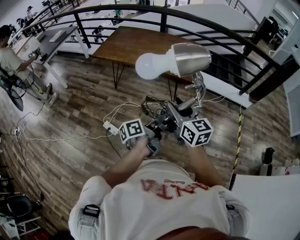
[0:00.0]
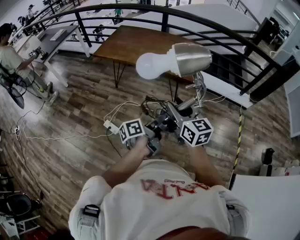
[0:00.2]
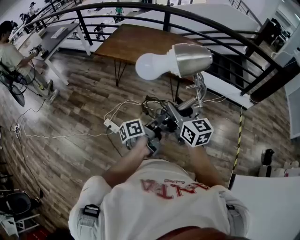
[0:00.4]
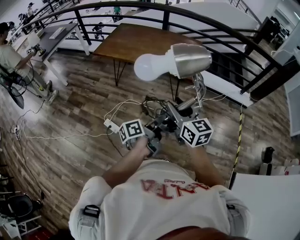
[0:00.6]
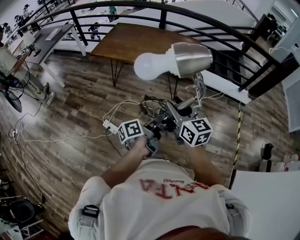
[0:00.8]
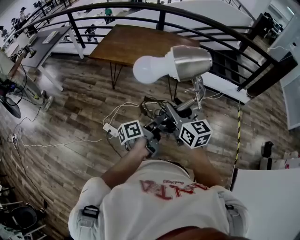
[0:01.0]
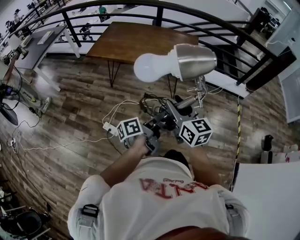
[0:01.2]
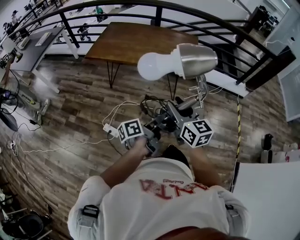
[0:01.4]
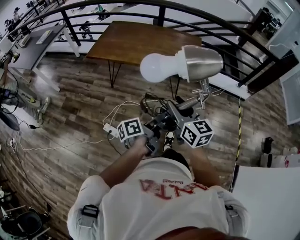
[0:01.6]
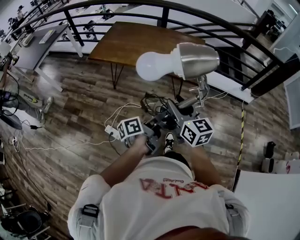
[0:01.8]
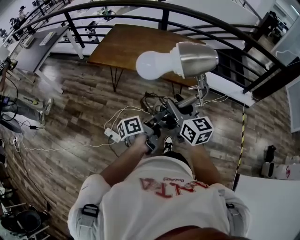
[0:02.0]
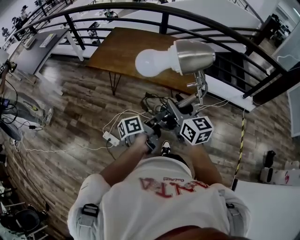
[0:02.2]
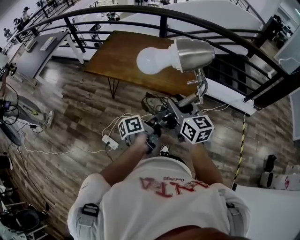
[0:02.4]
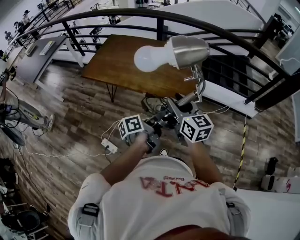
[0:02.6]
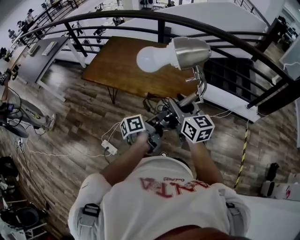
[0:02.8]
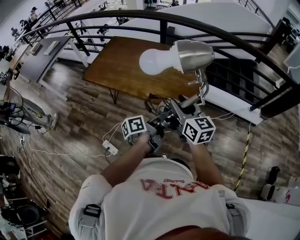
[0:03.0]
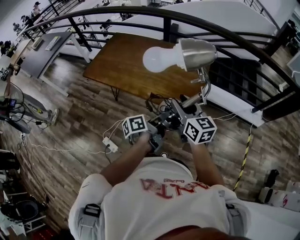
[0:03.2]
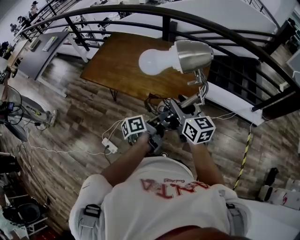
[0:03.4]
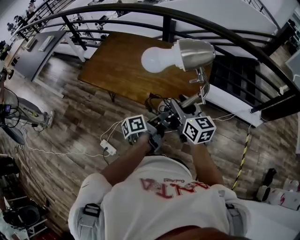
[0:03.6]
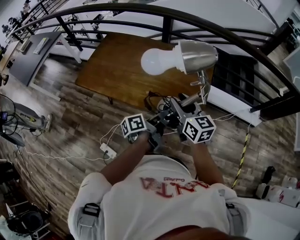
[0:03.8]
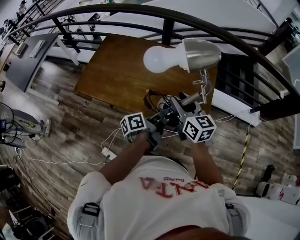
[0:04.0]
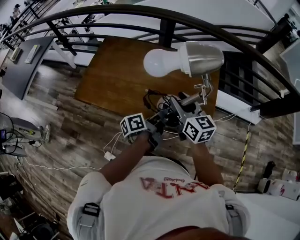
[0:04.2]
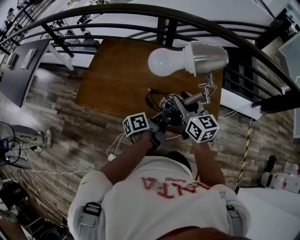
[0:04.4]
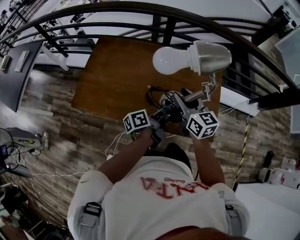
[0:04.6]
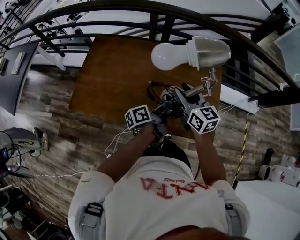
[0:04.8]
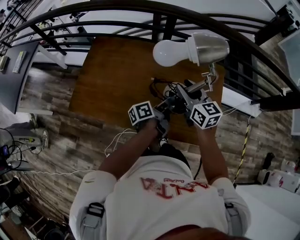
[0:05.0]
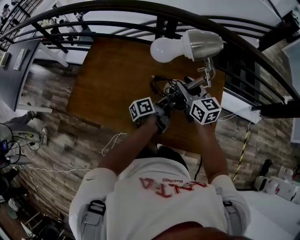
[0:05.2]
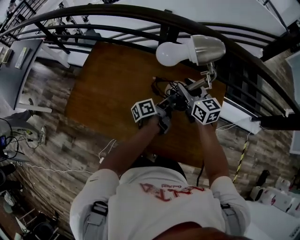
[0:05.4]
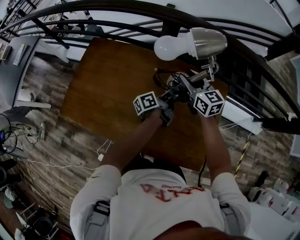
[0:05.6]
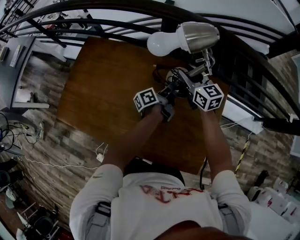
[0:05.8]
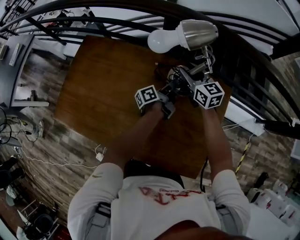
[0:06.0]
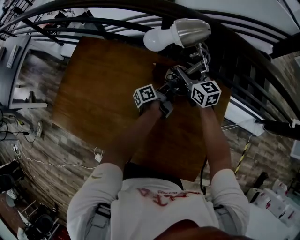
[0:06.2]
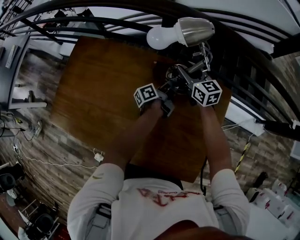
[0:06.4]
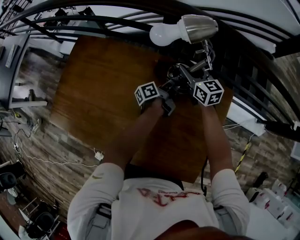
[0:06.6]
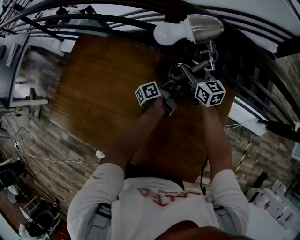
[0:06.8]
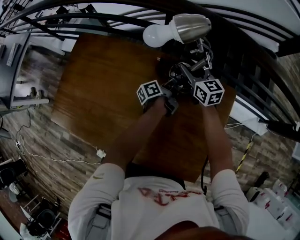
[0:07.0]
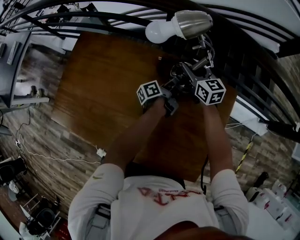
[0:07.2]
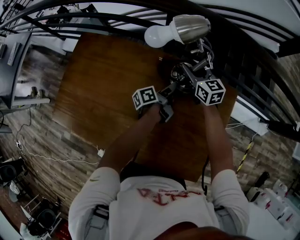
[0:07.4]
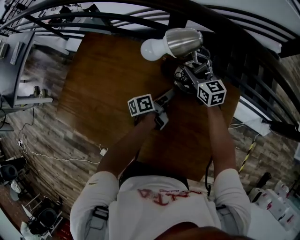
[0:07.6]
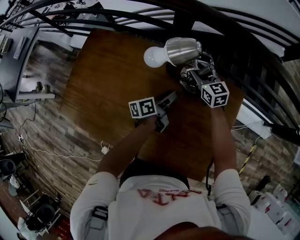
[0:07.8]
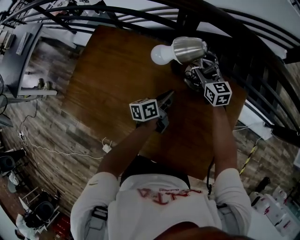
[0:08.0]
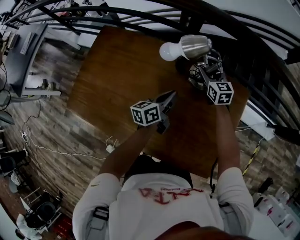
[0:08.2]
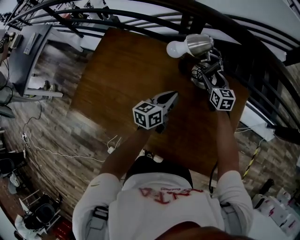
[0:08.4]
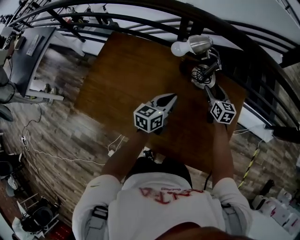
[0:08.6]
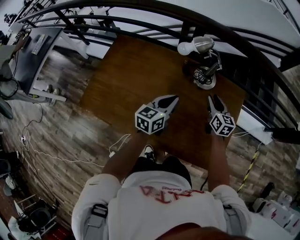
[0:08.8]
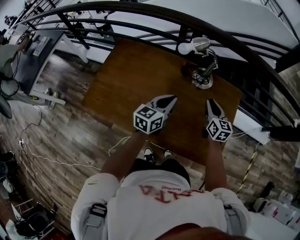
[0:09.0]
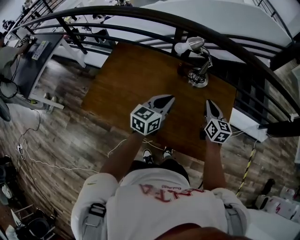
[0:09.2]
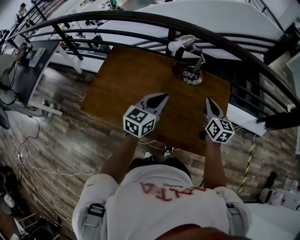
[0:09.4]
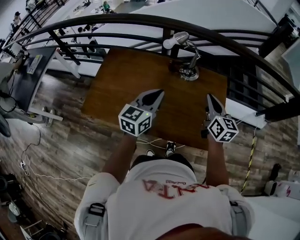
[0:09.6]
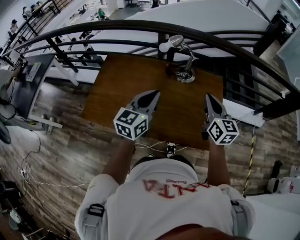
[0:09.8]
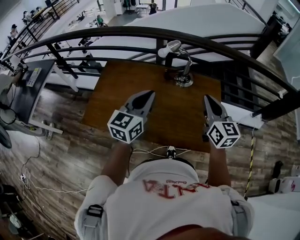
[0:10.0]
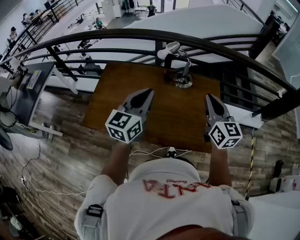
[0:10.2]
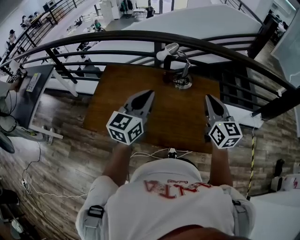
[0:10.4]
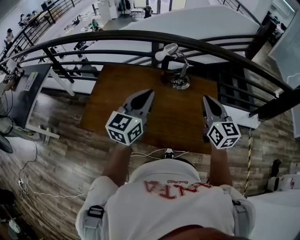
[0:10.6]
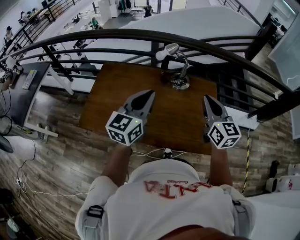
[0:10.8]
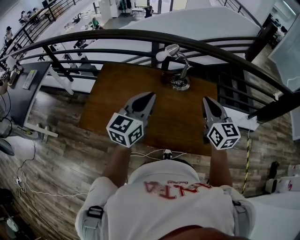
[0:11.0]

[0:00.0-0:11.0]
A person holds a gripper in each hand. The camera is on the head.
0.0 to 1.6 s: Both grippers move to the left and forward, about 10 cm.
1.6 to 3.2 s: The two grippers go some 30 cm forward and to the right.
3.2 to 4.8 s: The grippers both shift forward and to the left by approximately 35 cm.
4.8 to 6.2 s: Both grippers move forward and downward, approximately 35 cm.
6.2 to 7.8 s: The left gripper is displaced backward and to the left by roughly 10 cm, and rotates approximately 20 degrees.
7.8 to 9.4 s: The left gripper goes approximately 30 cm upward and backward, rolls clockwise, seen from behind, by about 60 degrees, and closes its fingers. Meanwhile the right gripper is displaced backward and upward by roughly 35 cm, rotates approximately 30 degrees, and closes up.
9.4 to 11.0 s: The left gripper shifts about 10 cm upward, while the right gripper travels upward and backward by about 15 cm.

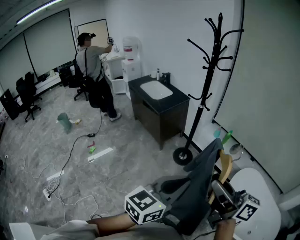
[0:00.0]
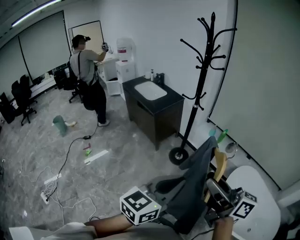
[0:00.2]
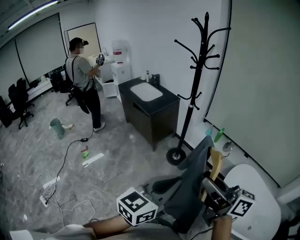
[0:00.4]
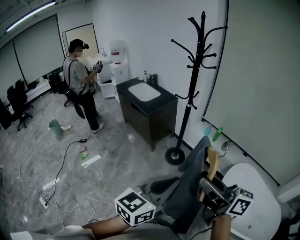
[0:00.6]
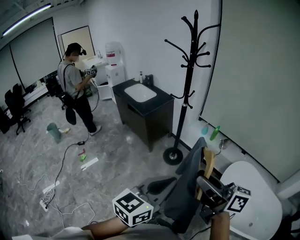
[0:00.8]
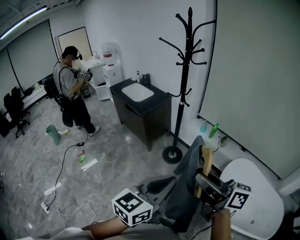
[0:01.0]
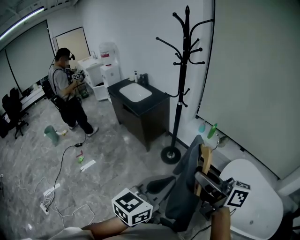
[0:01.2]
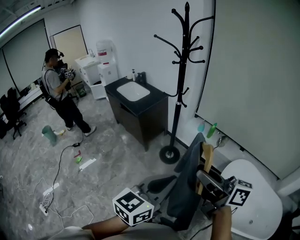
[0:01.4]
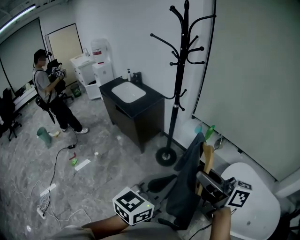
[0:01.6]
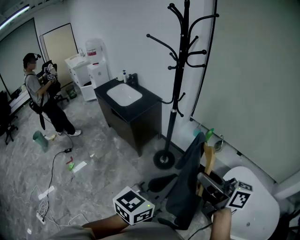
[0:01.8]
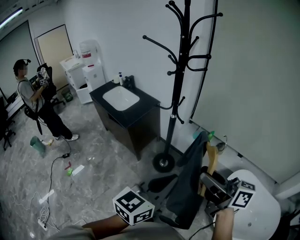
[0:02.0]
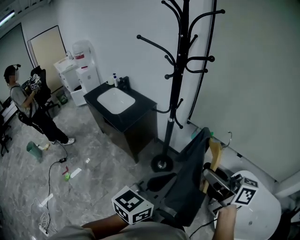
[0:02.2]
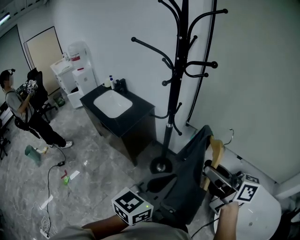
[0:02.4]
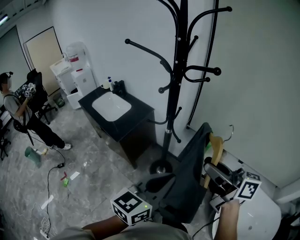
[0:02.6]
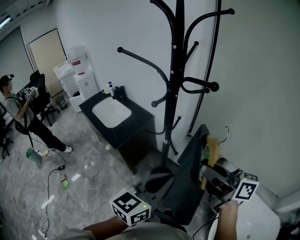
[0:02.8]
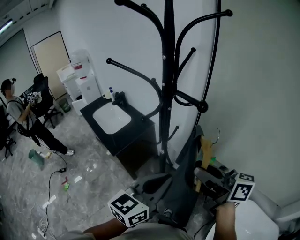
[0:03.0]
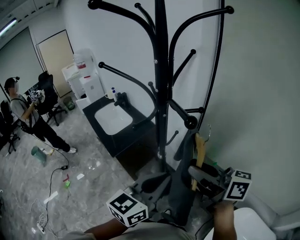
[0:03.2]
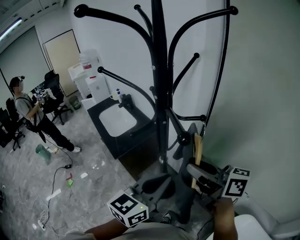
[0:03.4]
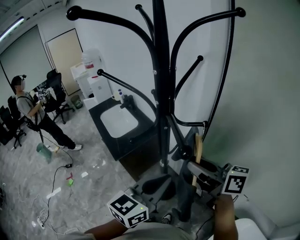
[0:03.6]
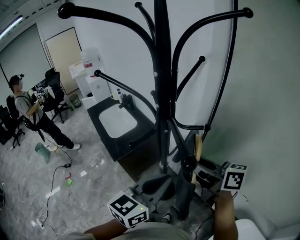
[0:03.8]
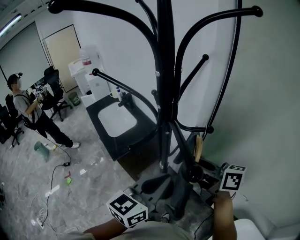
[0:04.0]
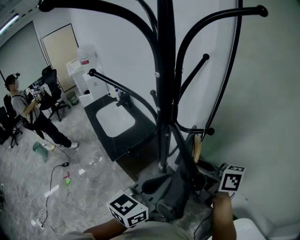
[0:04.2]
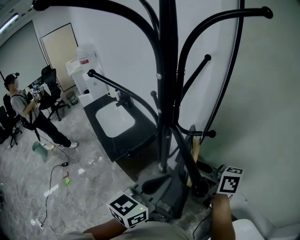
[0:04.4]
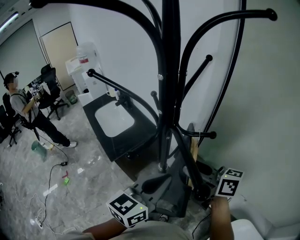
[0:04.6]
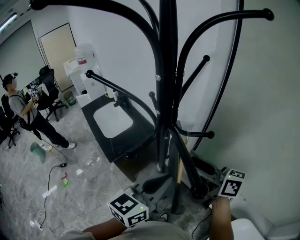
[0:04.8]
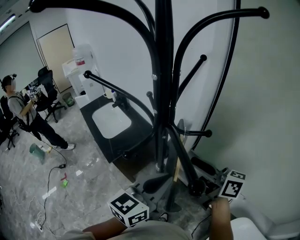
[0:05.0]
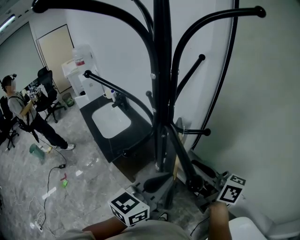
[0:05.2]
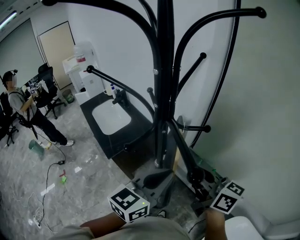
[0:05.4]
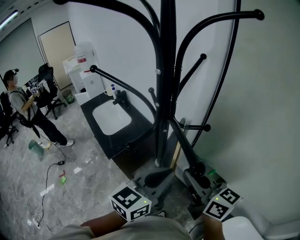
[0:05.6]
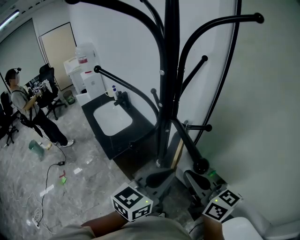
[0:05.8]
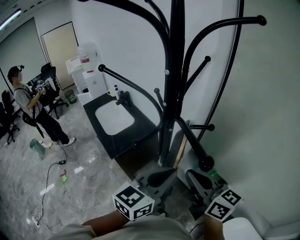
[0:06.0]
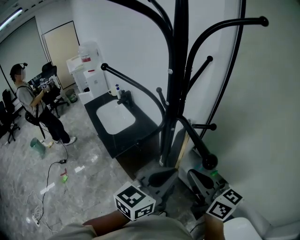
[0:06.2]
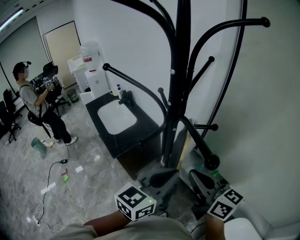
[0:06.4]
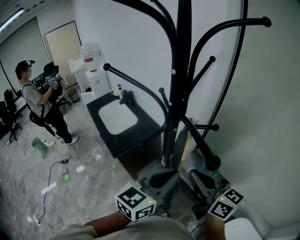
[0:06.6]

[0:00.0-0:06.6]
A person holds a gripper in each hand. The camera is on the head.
0.0 to 1.6 s: The left gripper moves forward and to the right, some 10 cm. The right gripper heads forward, covering approximately 10 cm.
1.6 to 3.2 s: The two grippers travel together, forward, approximately 50 cm.
3.2 to 5.0 s: Both grippers move forward, roughly 10 cm.
5.0 to 6.6 s: The right gripper shifts some 5 cm backward, and closes.

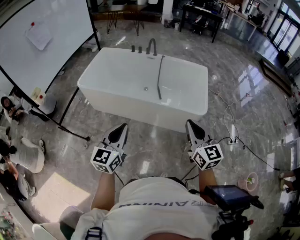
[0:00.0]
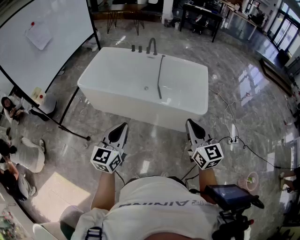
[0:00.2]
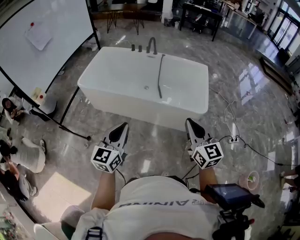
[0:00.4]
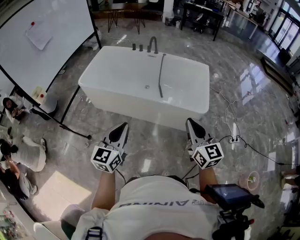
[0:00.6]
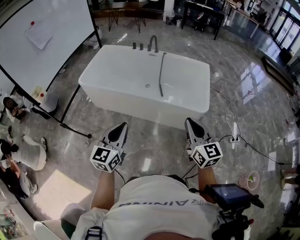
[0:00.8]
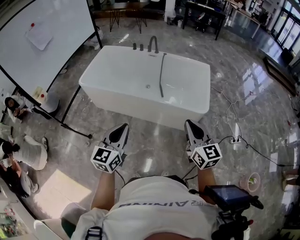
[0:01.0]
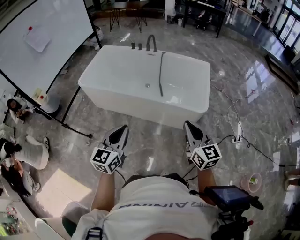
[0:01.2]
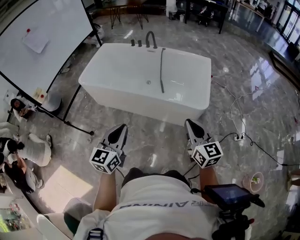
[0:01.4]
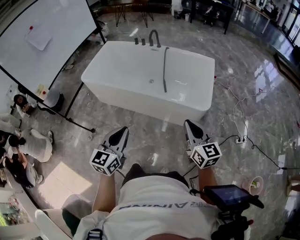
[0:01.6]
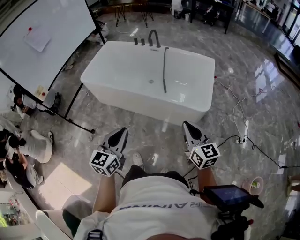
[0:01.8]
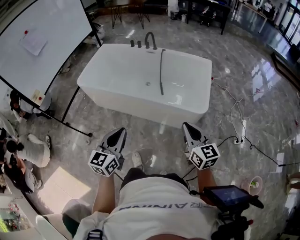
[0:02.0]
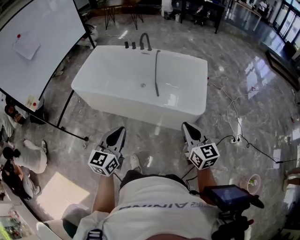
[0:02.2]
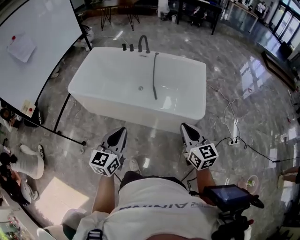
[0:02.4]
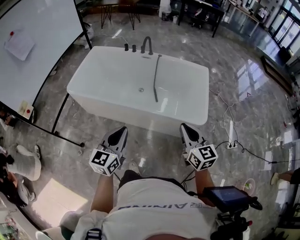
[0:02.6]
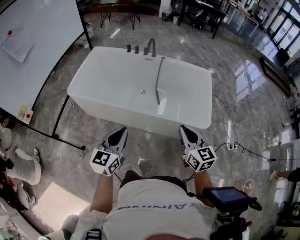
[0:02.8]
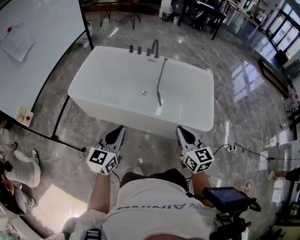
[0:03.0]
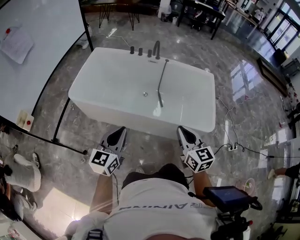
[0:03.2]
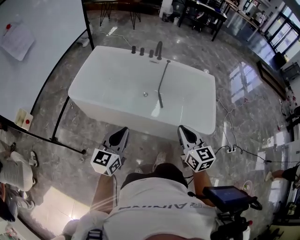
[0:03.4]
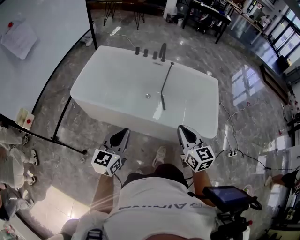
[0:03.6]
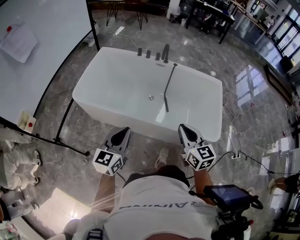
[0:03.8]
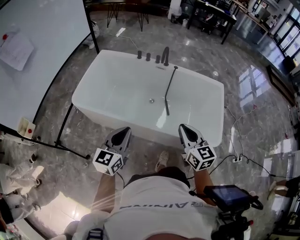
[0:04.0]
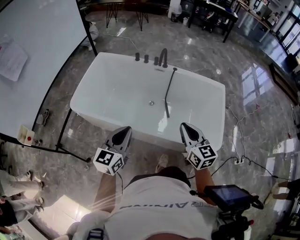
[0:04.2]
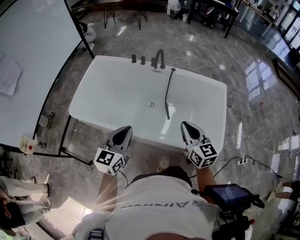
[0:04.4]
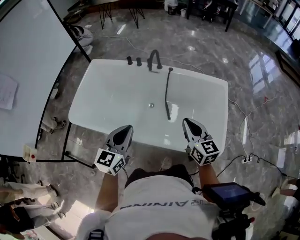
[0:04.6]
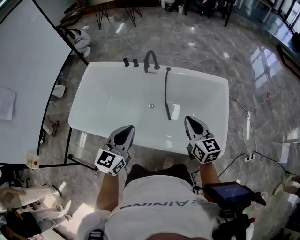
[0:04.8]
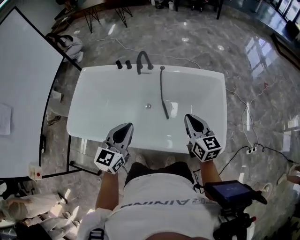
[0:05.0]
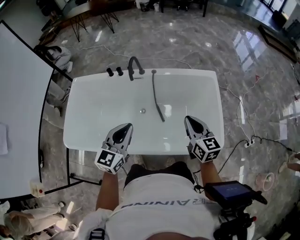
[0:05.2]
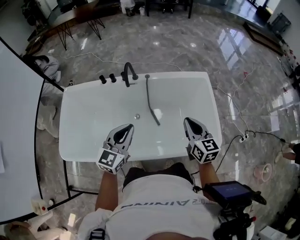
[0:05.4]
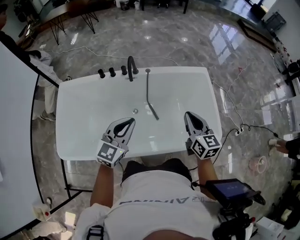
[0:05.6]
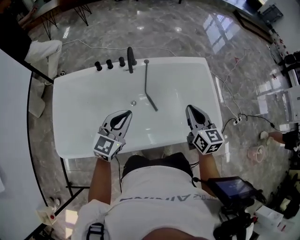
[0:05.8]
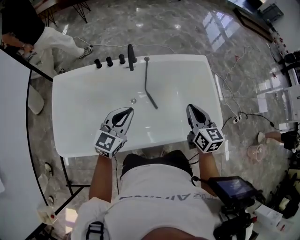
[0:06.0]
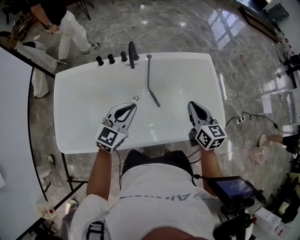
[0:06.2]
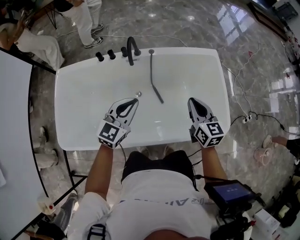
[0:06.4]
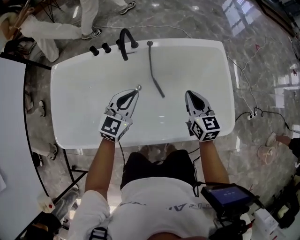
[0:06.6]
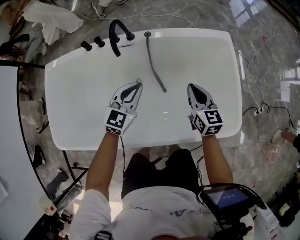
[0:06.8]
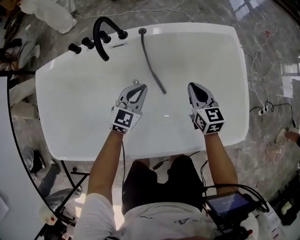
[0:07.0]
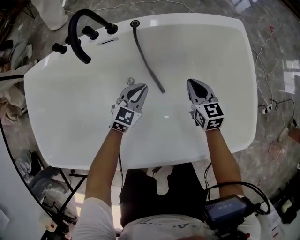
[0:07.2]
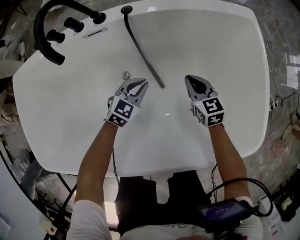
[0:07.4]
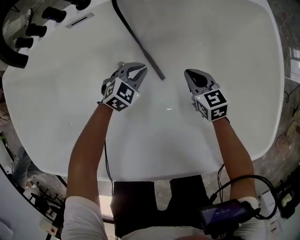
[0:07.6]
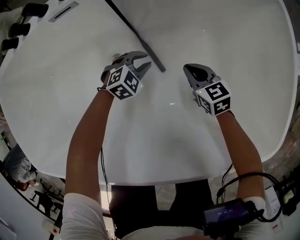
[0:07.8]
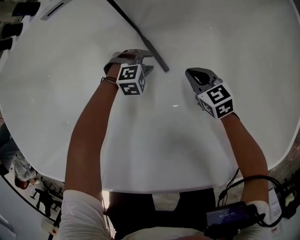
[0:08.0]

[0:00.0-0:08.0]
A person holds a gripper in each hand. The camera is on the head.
0.0 to 1.6 s: The right gripper shifts roughly 10 cm to the right and downward, while the left gripper heads to the right, covering approximately 10 cm.
1.6 to 3.2 s: The left gripper heads forward and to the left, covering roughly 35 cm. Meanwhile the right gripper is displaced to the left and forward by approximately 30 cm.
3.2 to 4.8 s: Both grippers travel together forward and to the right, about 35 cm.
4.8 to 6.4 s: The left gripper changes place by some 20 cm, and changes its angle by about 30 degrees, while the right gripper moves some 10 cm, and swivels approximately 20 degrees.
6.4 to 8.0 s: Both grippers travel together downward, some 70 cm. The left gripper angles its fingers downward, by roughly 50 degrees, and opens up, while the right gripper rotates roughly 30 degrees.
